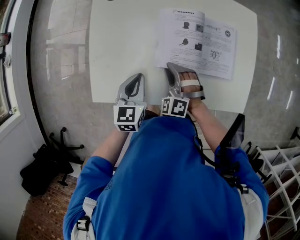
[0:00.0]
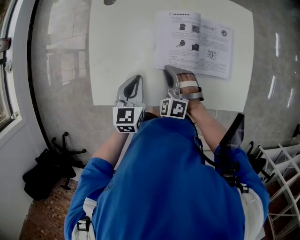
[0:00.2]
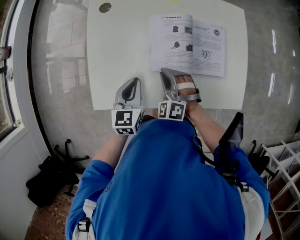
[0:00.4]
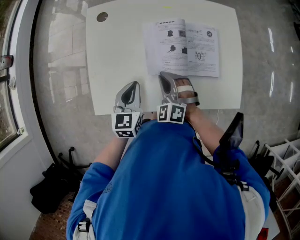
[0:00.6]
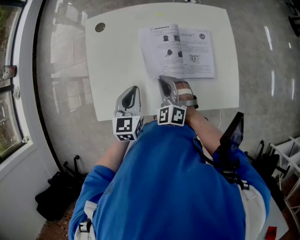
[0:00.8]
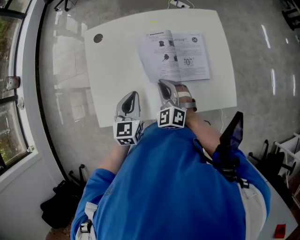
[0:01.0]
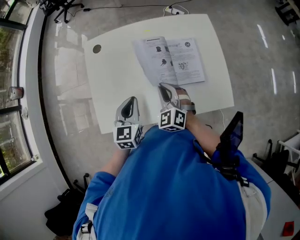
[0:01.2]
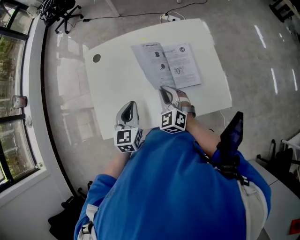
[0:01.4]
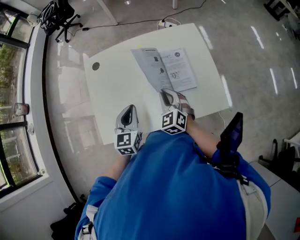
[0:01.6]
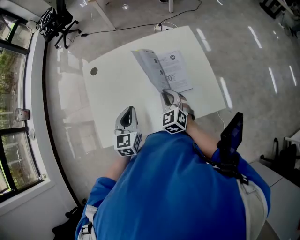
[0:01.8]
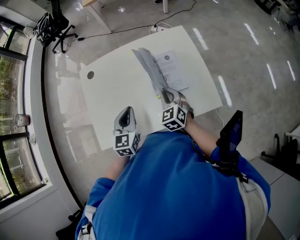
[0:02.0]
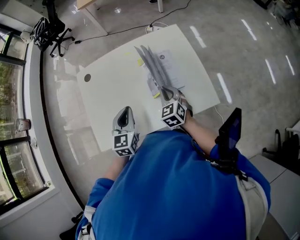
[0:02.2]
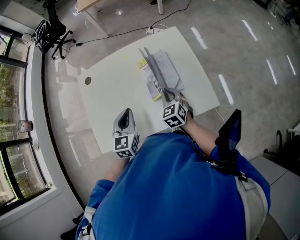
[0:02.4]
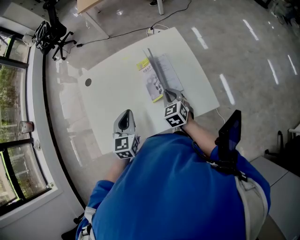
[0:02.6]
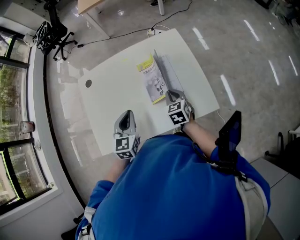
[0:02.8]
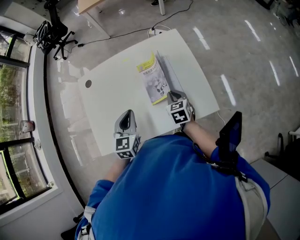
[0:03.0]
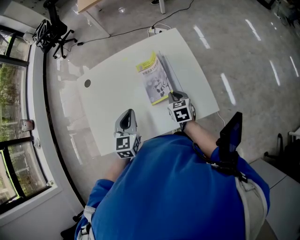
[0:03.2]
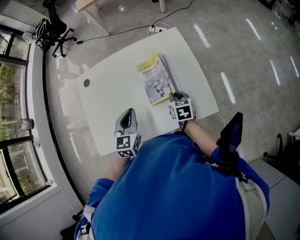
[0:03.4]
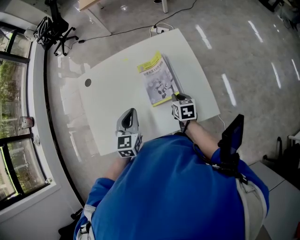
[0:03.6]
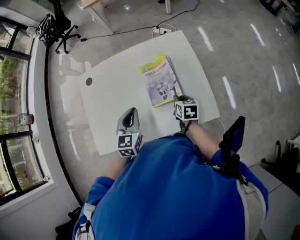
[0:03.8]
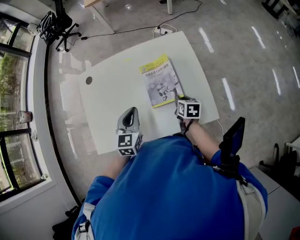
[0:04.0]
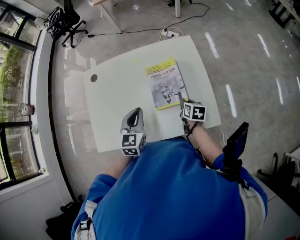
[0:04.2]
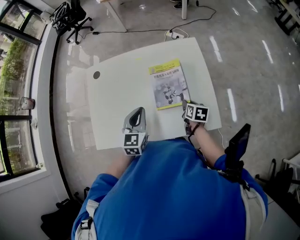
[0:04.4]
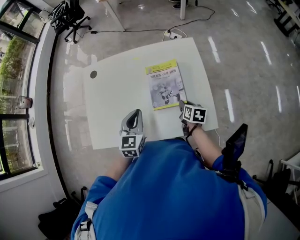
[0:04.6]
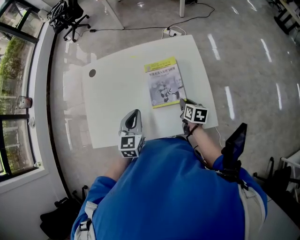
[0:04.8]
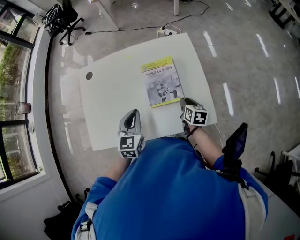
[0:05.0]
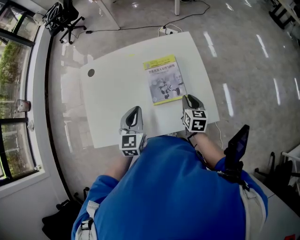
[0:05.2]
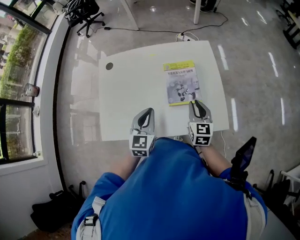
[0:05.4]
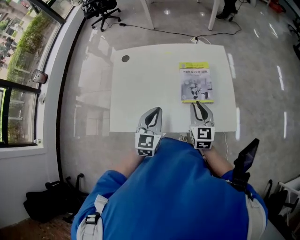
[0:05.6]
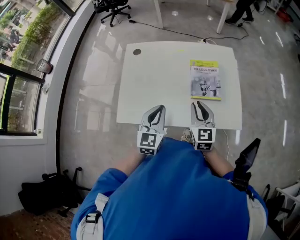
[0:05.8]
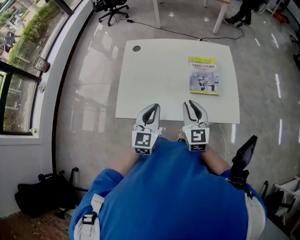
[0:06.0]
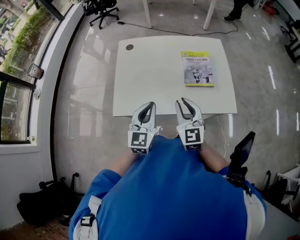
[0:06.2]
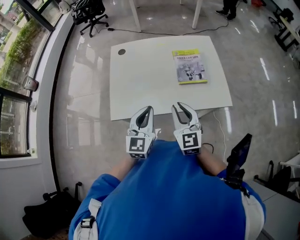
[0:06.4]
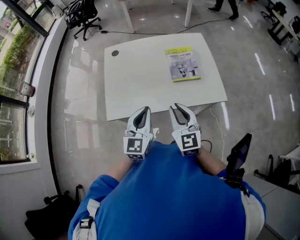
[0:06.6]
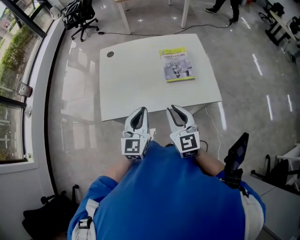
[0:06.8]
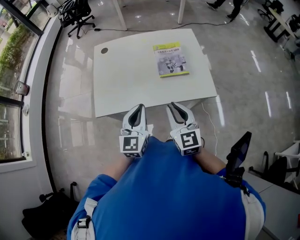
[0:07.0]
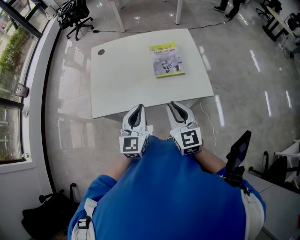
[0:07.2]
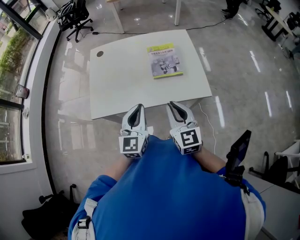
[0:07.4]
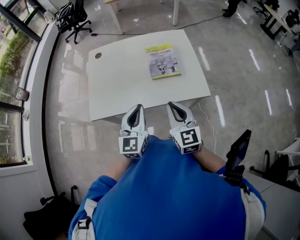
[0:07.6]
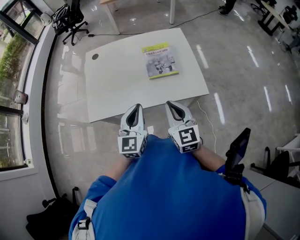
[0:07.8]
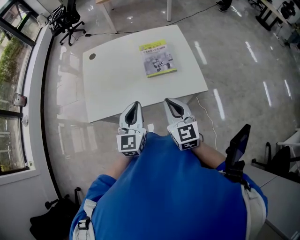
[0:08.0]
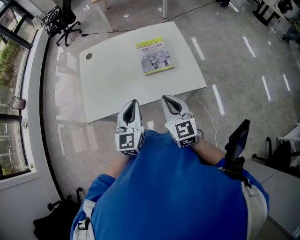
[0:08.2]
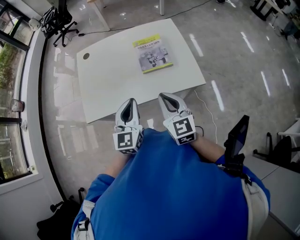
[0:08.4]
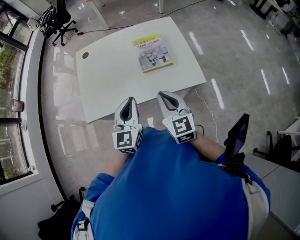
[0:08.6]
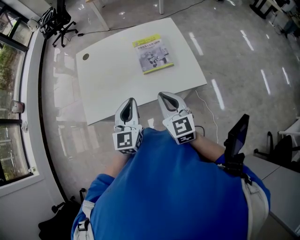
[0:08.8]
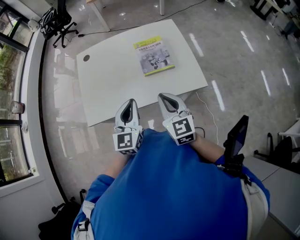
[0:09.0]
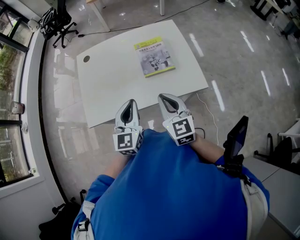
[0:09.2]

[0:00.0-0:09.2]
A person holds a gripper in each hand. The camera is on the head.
0:00.0 to 0:01.6: Both grippers travel together upward and to the right, approximately 15 cm. The right gripper rotates around the line of its fingers by about 40 degrees, clockwise from behind.
0:01.6 to 0:03.0: The left gripper heads to the right, covering approximately 5 cm. The right gripper goes approximately 15 cm to the right, and rotates some 30 degrees.
0:03.0 to 0:04.6: The right gripper shifts approximately 10 cm downward and to the right, and changes its angle by approximately 30 degrees.
0:04.6 to 0:06.2: The right gripper heads to the left, upward and backward, covering some 35 cm, and twists roughly 50 degrees counterclockwise, seen from behind, while the left gripper heads backward, to the left and upward, covering some 25 cm.
0:06.2 to 0:07.6: Both grippers travel together to the right and backward, some 15 cm.
0:07.6 to 0:09.2: The grippers make only small movements.

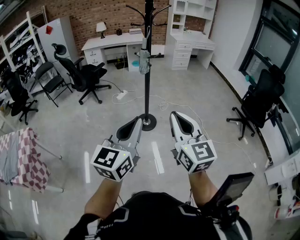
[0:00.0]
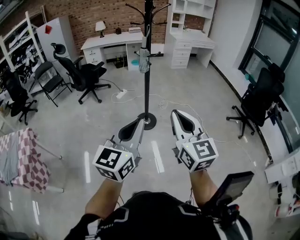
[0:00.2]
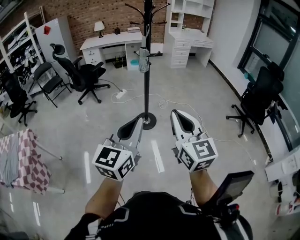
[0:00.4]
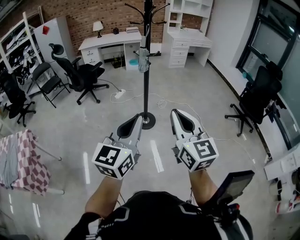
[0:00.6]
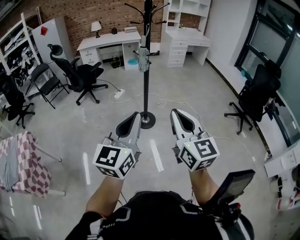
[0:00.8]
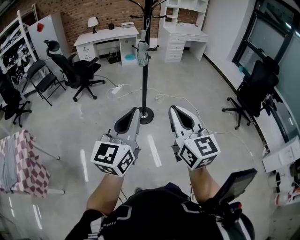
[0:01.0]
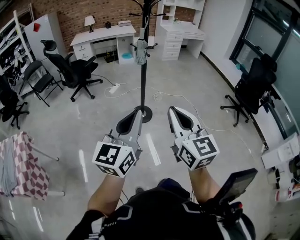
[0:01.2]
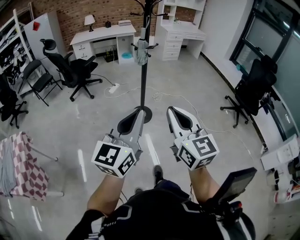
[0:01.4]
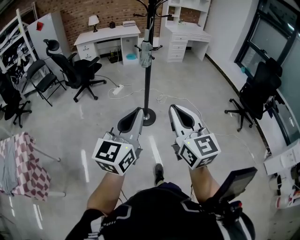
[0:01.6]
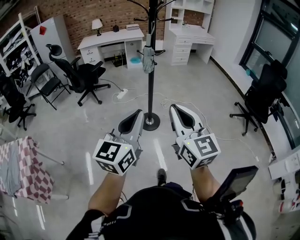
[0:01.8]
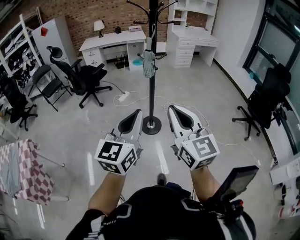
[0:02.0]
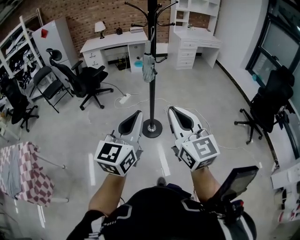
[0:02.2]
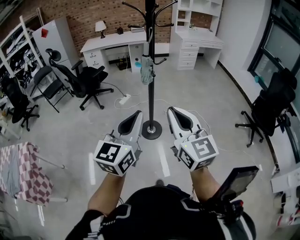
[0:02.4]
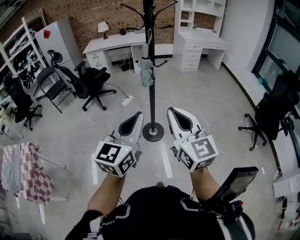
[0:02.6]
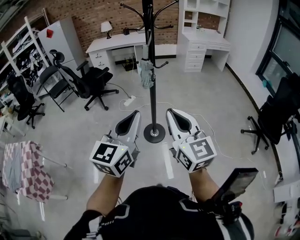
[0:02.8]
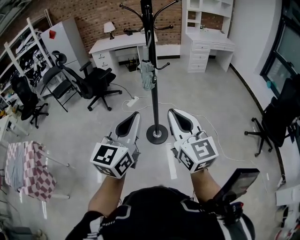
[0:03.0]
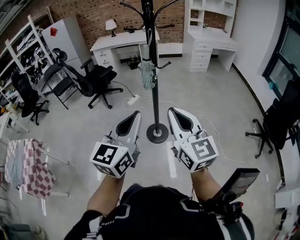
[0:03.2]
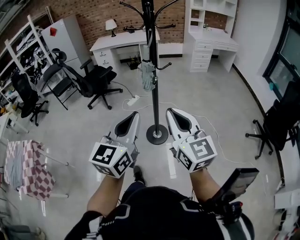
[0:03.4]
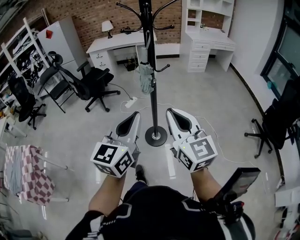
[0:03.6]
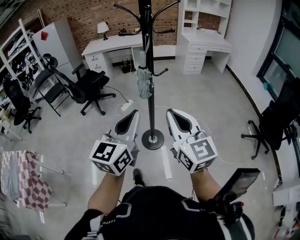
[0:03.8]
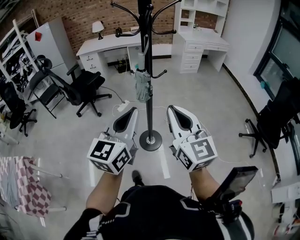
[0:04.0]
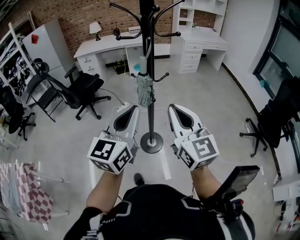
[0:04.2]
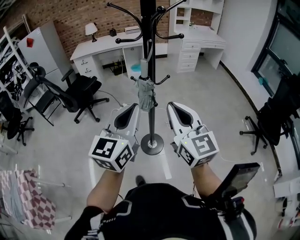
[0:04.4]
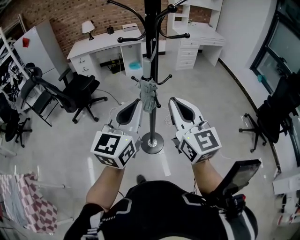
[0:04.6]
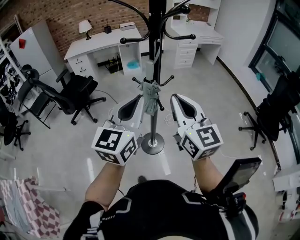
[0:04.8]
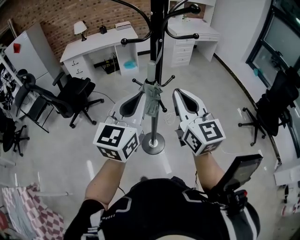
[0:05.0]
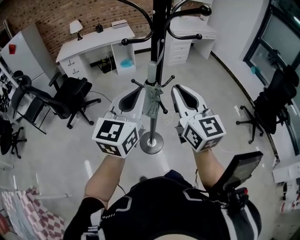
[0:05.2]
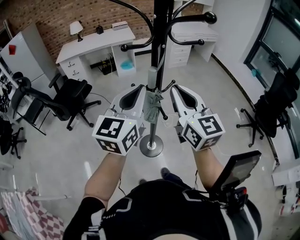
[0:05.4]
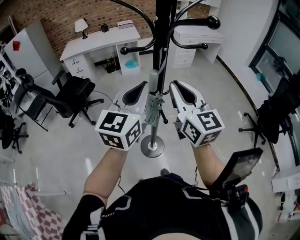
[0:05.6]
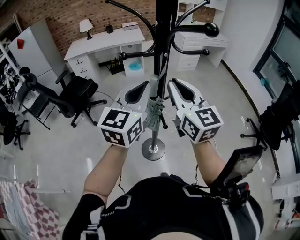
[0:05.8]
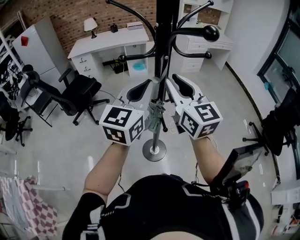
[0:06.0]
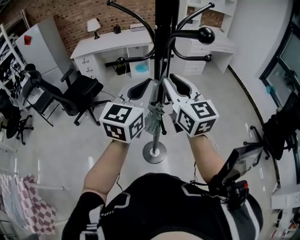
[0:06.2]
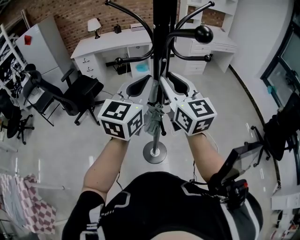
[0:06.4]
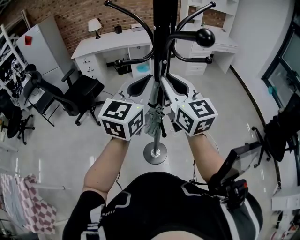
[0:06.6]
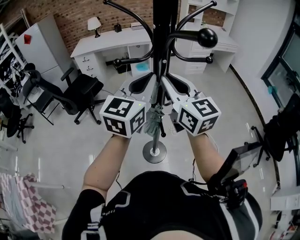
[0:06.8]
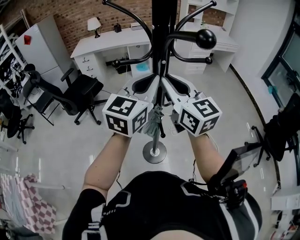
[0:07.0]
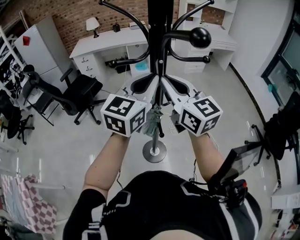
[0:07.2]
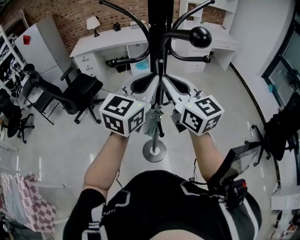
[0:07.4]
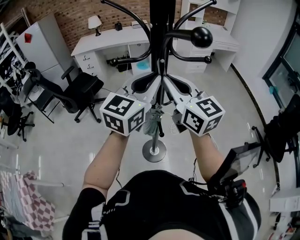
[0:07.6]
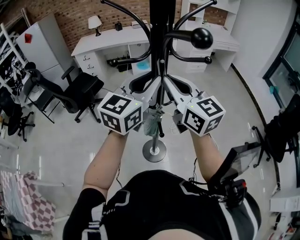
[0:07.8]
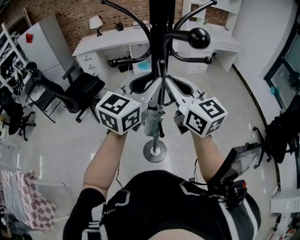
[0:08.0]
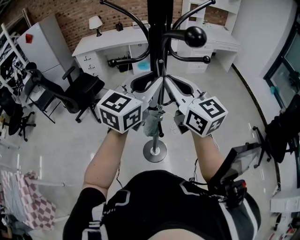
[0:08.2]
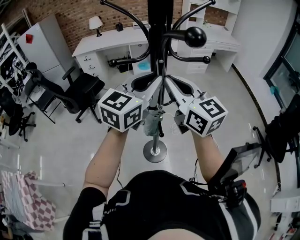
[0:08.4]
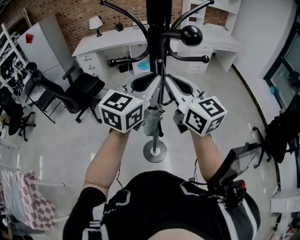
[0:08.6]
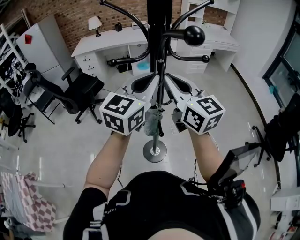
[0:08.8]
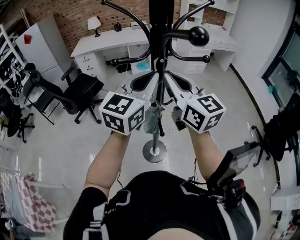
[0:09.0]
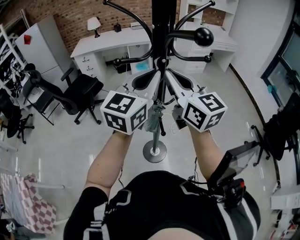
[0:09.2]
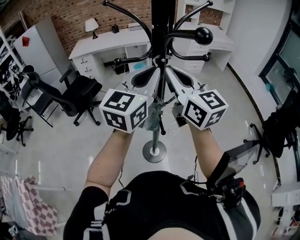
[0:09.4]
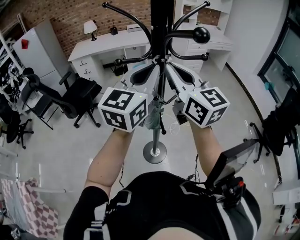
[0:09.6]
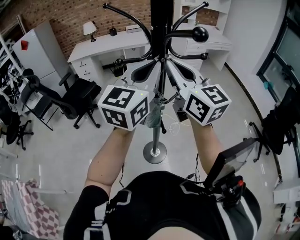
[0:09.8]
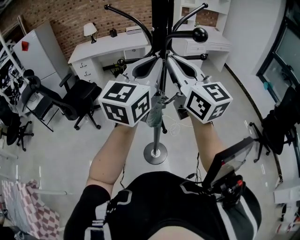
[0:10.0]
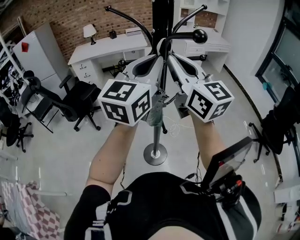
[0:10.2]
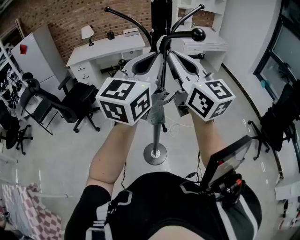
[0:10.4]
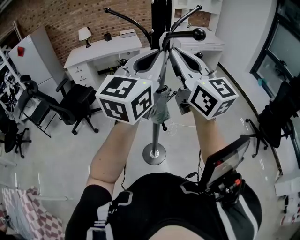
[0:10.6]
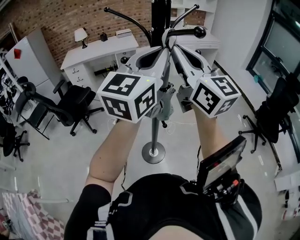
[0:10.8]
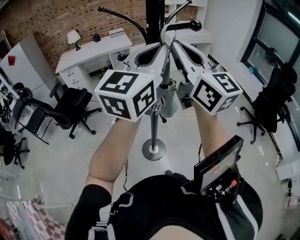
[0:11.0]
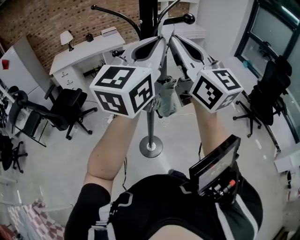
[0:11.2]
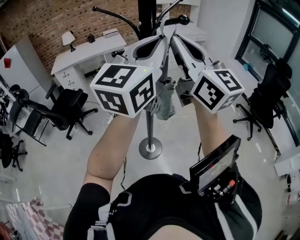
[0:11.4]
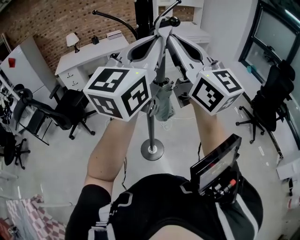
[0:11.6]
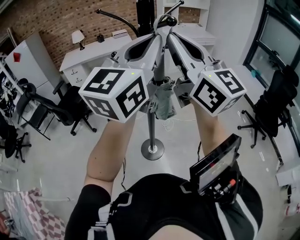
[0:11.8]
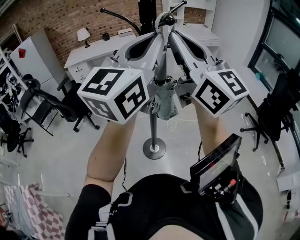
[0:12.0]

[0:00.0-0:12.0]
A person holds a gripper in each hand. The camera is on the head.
0:00.0 to 0:01.6: The two grippers go about 5 cm to the left.
0:01.6 to 0:03.0: Both grippers travel together forward and to the right, about 25 cm.
0:03.0 to 0:04.4: Both grippers travel together forward, roughly 20 cm.
0:04.4 to 0:06.0: The grippers both shift forward by roughly 20 cm.
0:06.0 to 0:07.6: The left gripper shifts by about 5 cm.
0:07.6 to 0:09.0: There are only small adjustments of the grippers.
0:09.0 to 0:10.4: The two grippers go about 10 cm upward.
0:10.4 to 0:12.0: The two grippers go roughly 15 cm backward and upward.

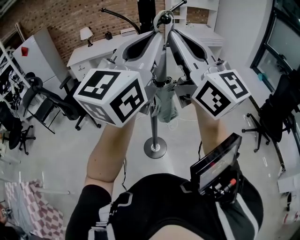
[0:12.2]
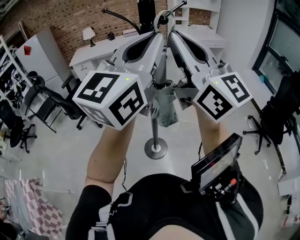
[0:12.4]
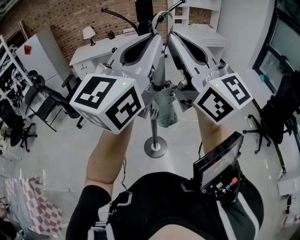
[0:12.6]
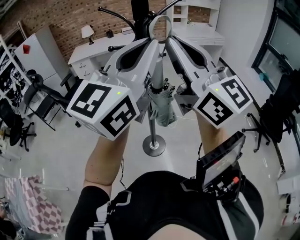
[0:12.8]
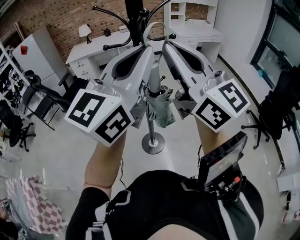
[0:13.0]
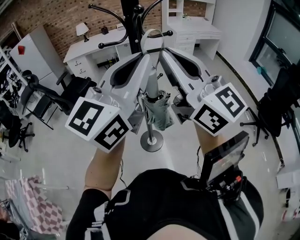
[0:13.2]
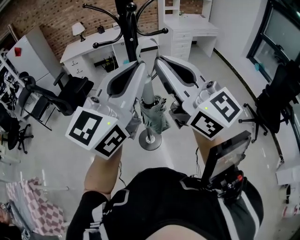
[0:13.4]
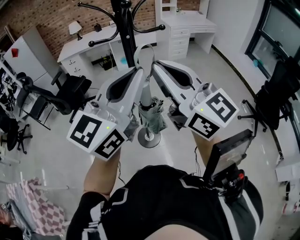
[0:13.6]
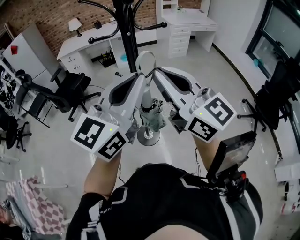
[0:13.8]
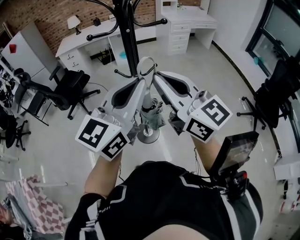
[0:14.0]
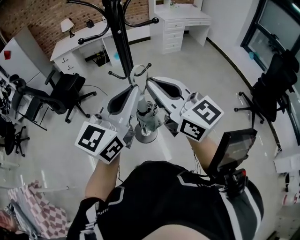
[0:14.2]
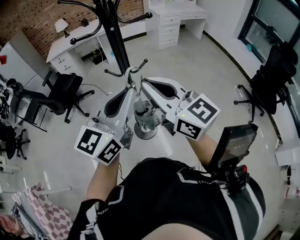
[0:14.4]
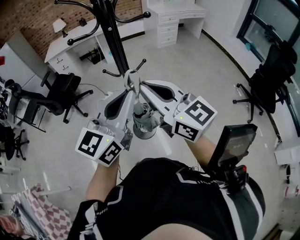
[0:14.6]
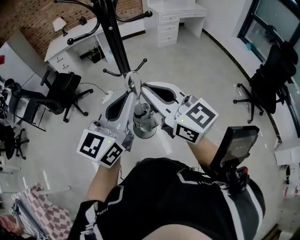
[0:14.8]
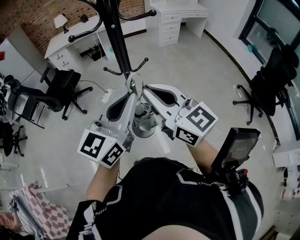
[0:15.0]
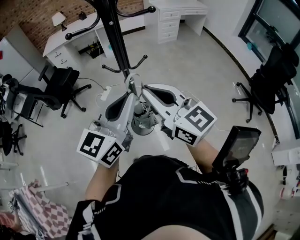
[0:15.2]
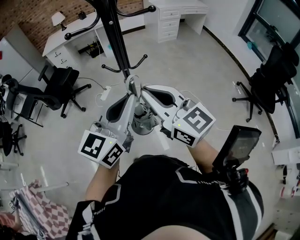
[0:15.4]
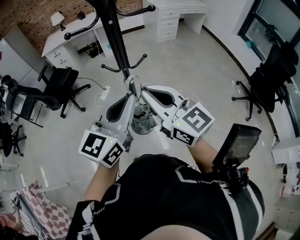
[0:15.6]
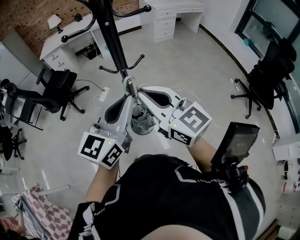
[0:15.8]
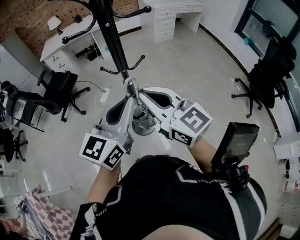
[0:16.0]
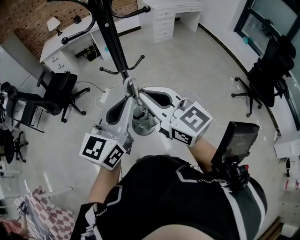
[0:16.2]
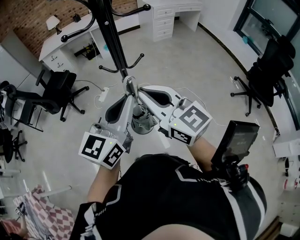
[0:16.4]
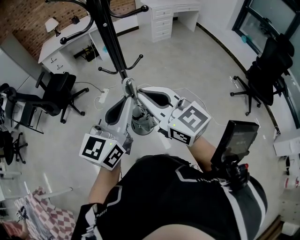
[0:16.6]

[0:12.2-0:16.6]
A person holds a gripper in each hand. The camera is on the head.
0:12.2 to 0:13.6: The left gripper moves downward and backward, some 10 cm, while the right gripper heads downward, covering some 10 cm.
0:13.6 to 0:15.2: The grippers both shift downward by approximately 15 cm.
0:15.2 to 0:16.6: The grippers stay close to where they were, moving slightly.
